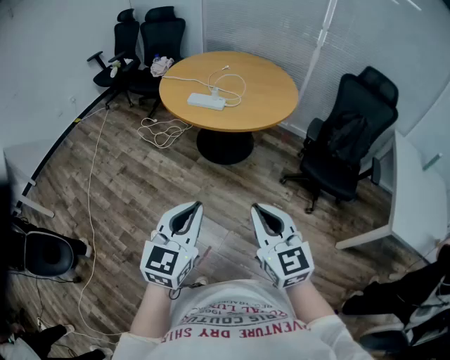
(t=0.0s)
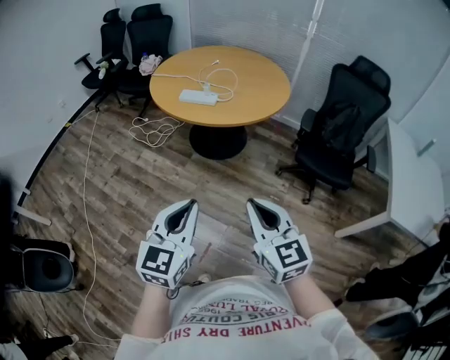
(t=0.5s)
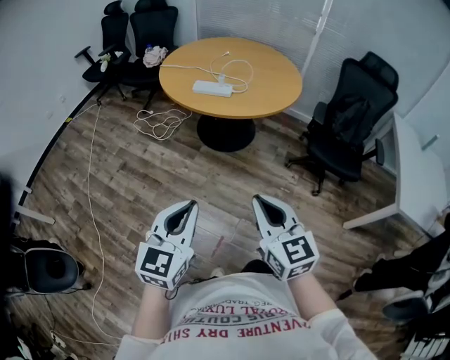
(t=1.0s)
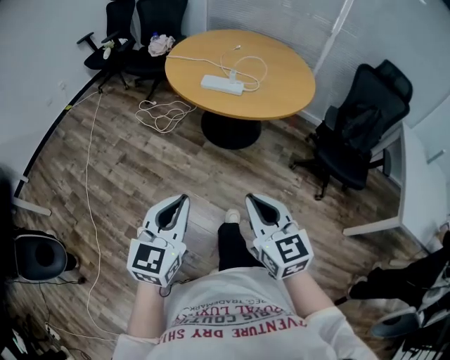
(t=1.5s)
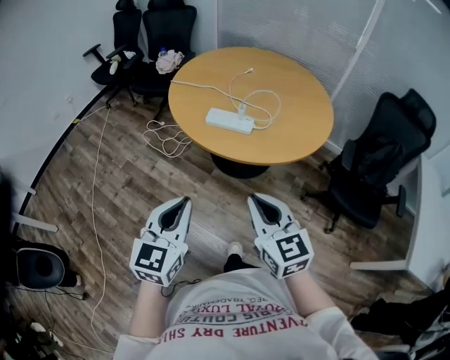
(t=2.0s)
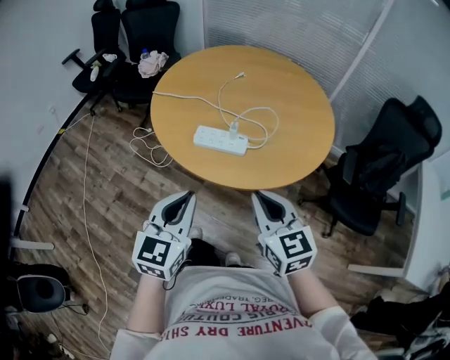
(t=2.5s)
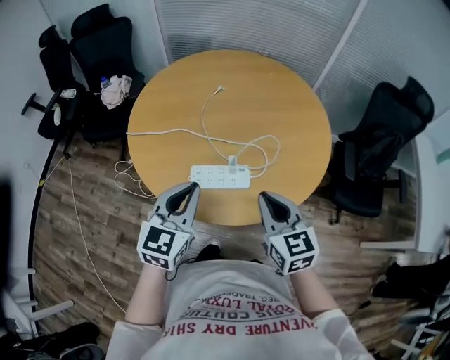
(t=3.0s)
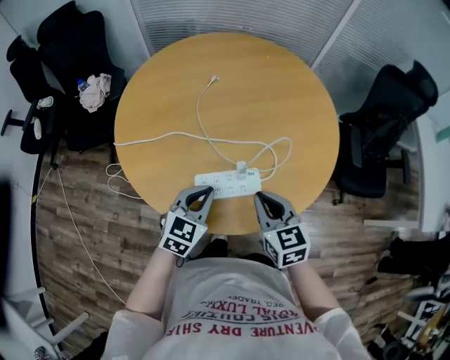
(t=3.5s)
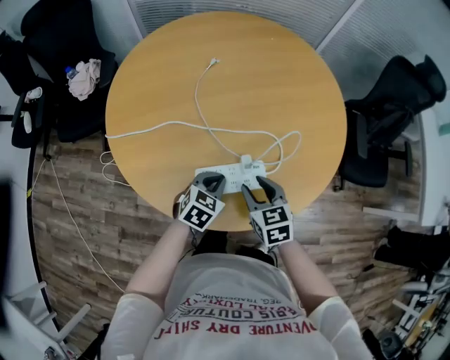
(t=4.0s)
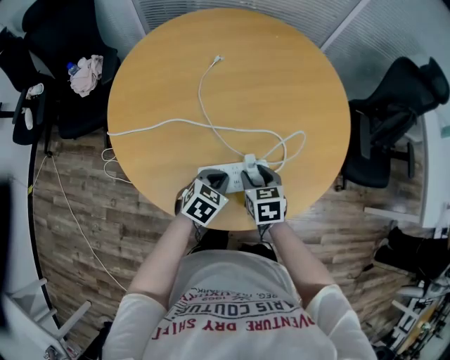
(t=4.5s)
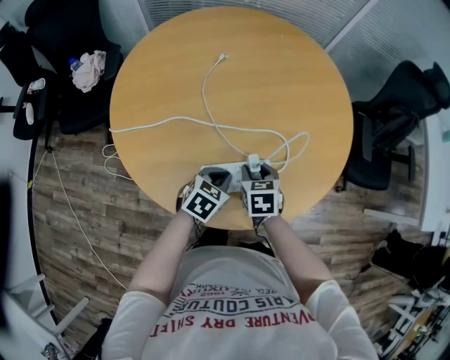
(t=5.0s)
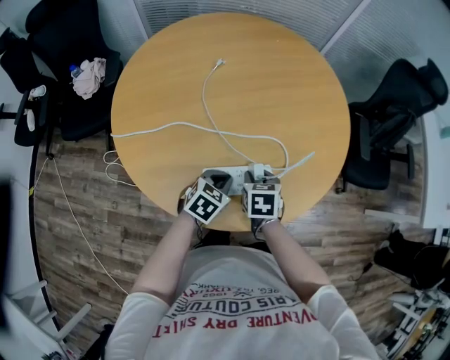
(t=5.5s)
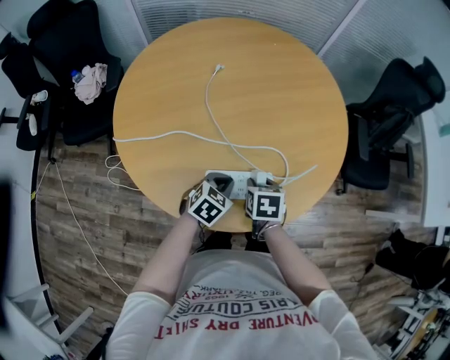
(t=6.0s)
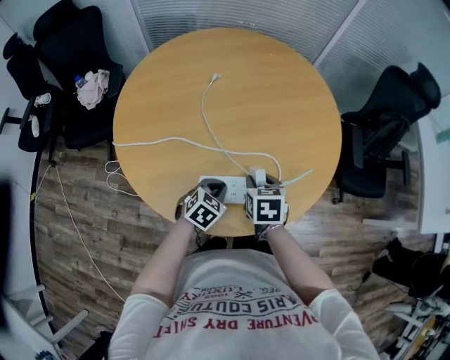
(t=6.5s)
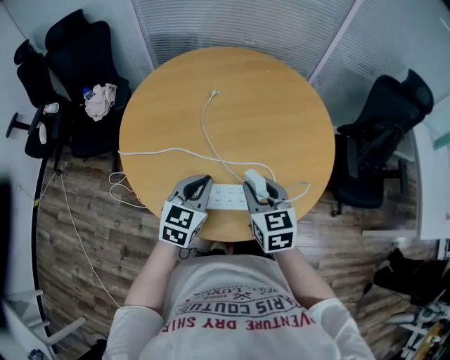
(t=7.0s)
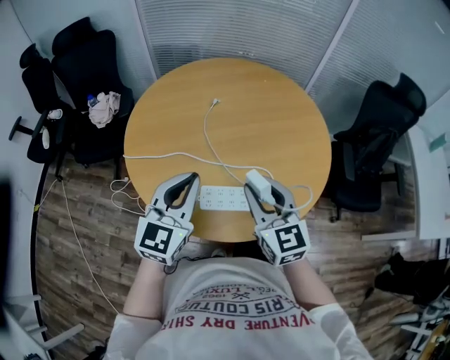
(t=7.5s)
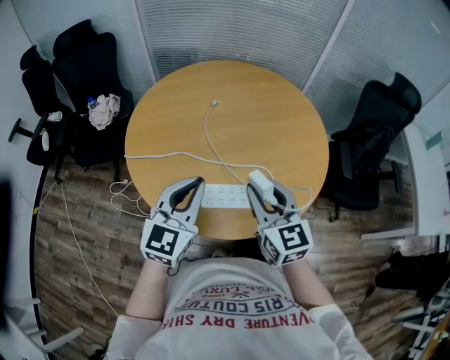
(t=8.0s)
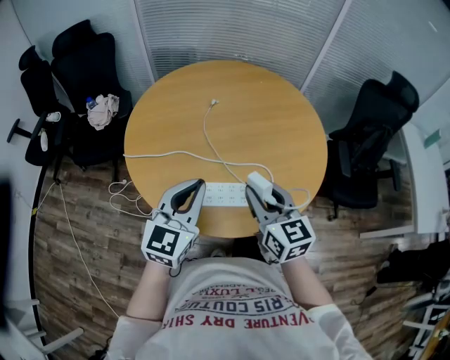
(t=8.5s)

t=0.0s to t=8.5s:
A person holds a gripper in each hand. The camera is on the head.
t=0.0s to t=2.0s: The grippers both shift forward and to the left by roughly 30 cm.
t=2.0s to t=4.0s: Both grippers are carried some 40 cm. The right gripper changes its angle by some 40 degrees, and opens; the left gripper tilts its fingers roughly 30 degrees downward.
t=6.5s to t=8.5s: The right gripper heads upward, covering about 20 cm, and angles its fingers upward, by roughly 40 degrees; the left gripper is displaced upward by some 30 cm, and tips its fingers upward by approximately 40 degrees.

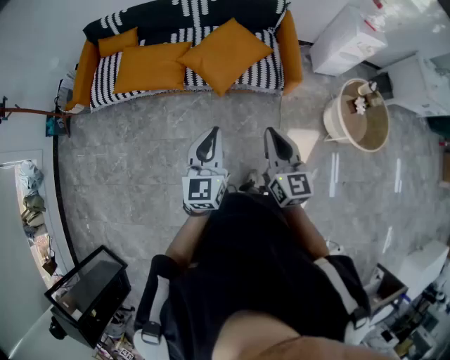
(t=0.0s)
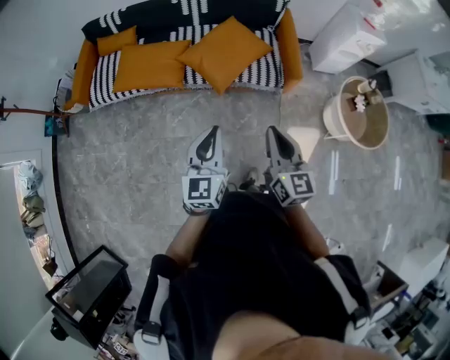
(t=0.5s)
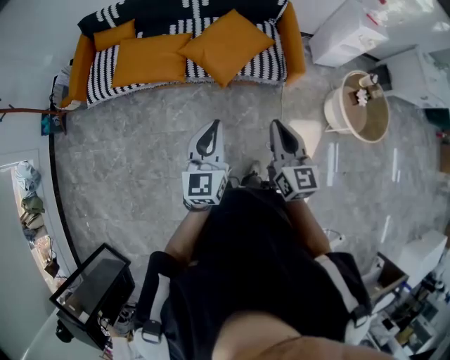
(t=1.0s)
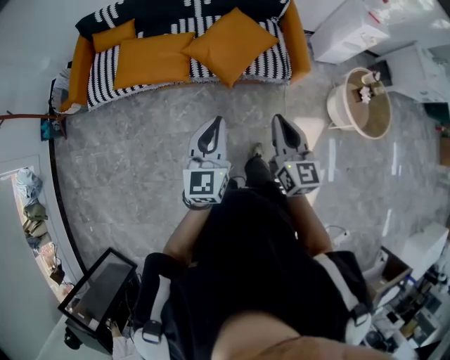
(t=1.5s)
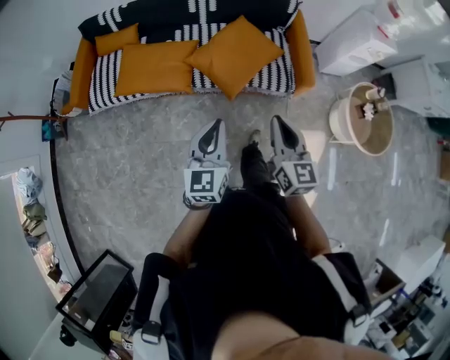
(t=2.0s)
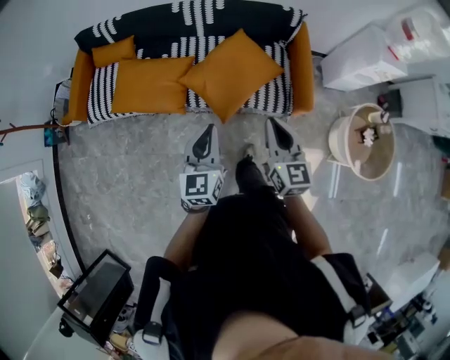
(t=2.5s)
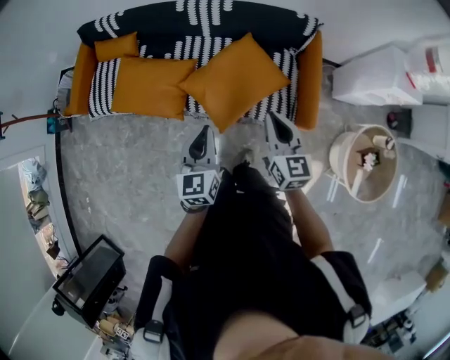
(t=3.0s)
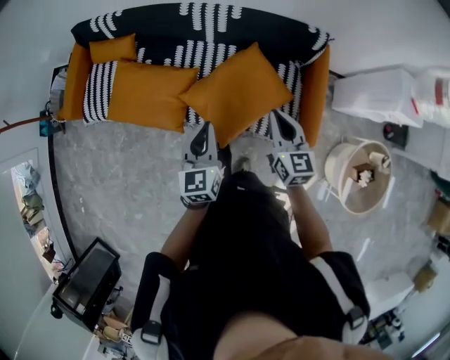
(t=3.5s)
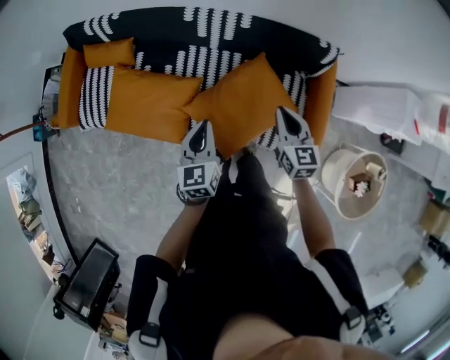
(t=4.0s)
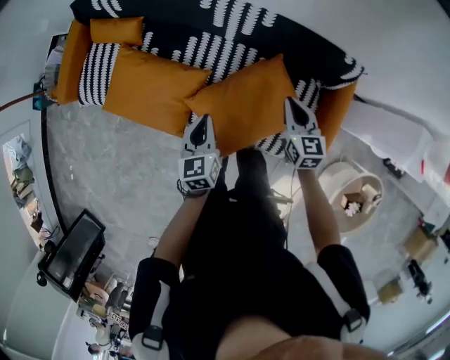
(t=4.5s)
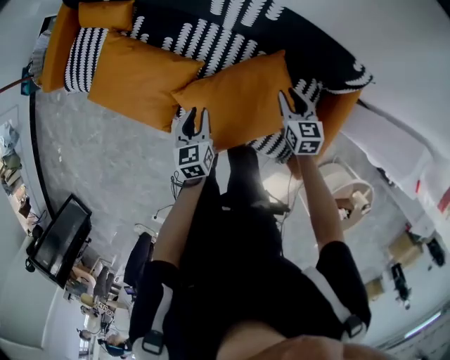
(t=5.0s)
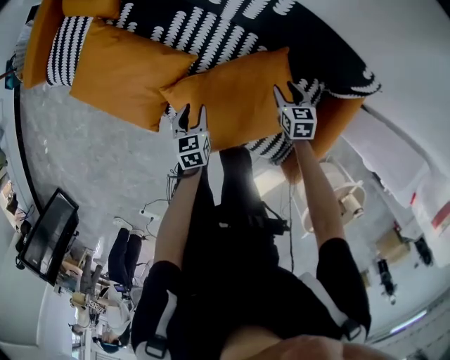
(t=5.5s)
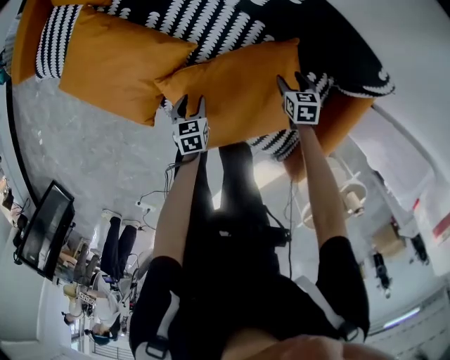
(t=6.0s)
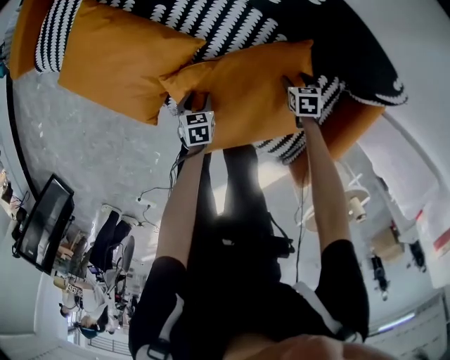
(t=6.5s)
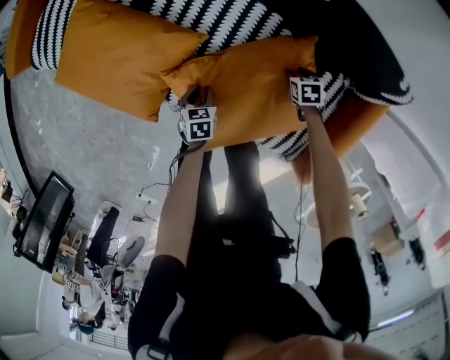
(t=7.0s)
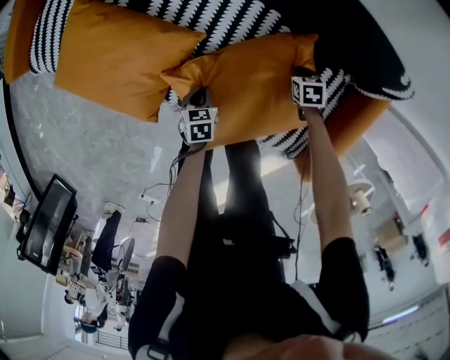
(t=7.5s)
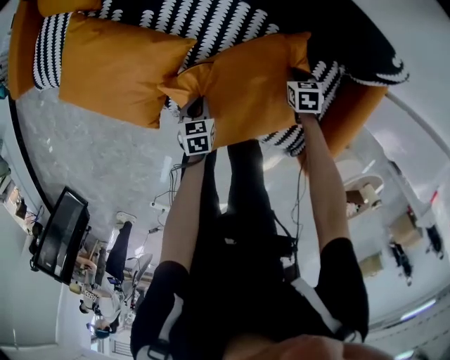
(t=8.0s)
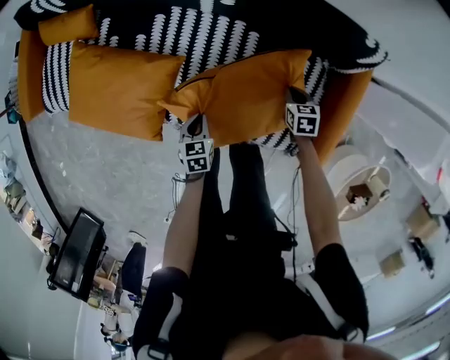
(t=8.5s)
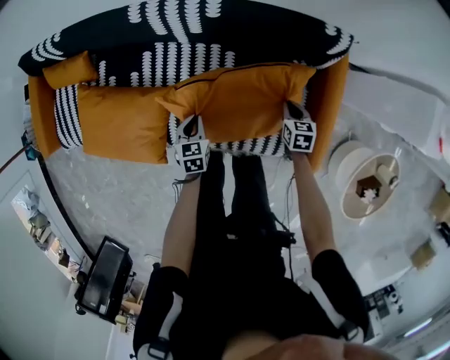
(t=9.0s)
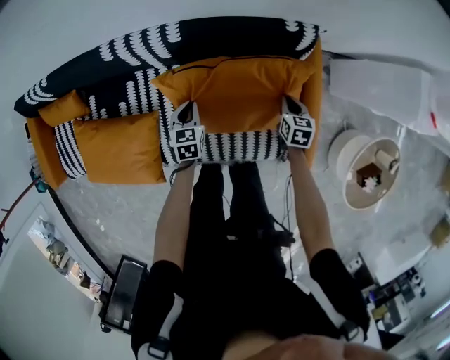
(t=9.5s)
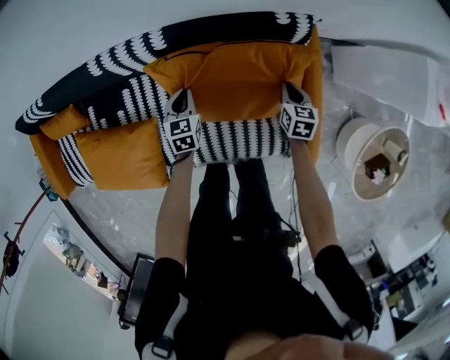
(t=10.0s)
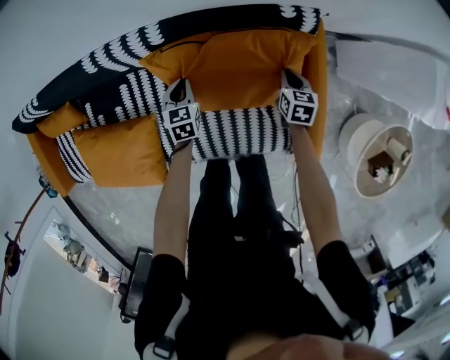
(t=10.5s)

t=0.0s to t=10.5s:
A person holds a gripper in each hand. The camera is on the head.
t=0.0s to t=2.0s: The two grippers go about 15 cm forward and to the left.
t=2.0s to t=4.0s: Both grippers are carried forward, some 50 cm. The left gripper turns by about 20 degrees. The right gripper swivels some 20 degrees.
t=4.0s to t=6.5s: Both grippers travel together downward, about 40 cm. The right gripper tips its fingers downward by about 50 degrees, and opens up, while the left gripper tilts its fingers roughly 40 degrees downward, and opens its fingers.
t=6.5s to t=8.5s: The left gripper heads upward, covering roughly 10 cm, and closes, while the right gripper ends up some 10 cm from where it was, and closes.
t=8.5s to t=10.5s: The right gripper is displaced to the right, forward and upward by roughly 15 cm, and swivels roughly 30 degrees. Meanwhile the left gripper goes about 30 cm forward, and turns by about 20 degrees.

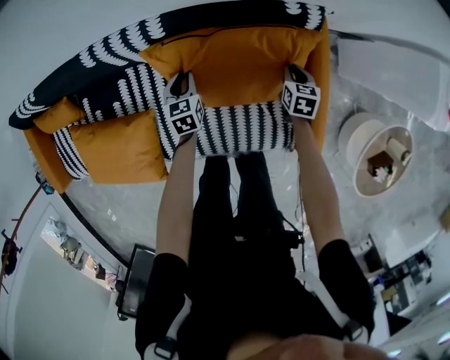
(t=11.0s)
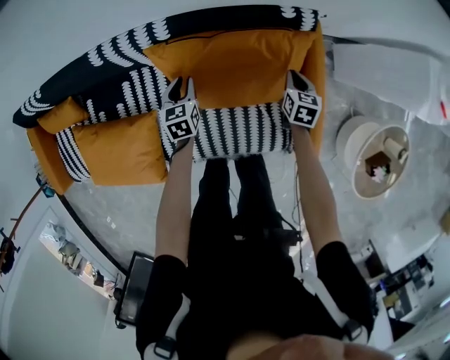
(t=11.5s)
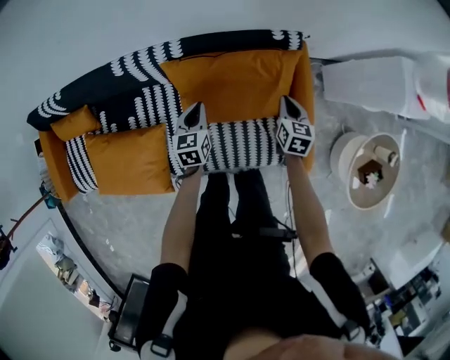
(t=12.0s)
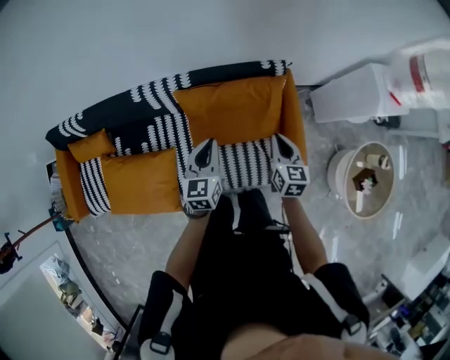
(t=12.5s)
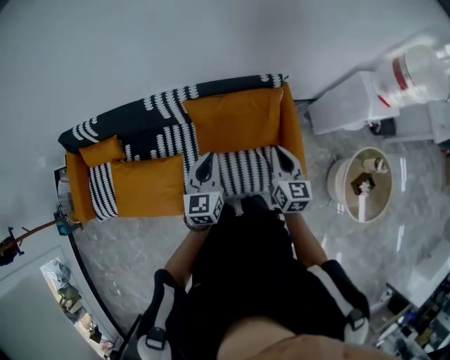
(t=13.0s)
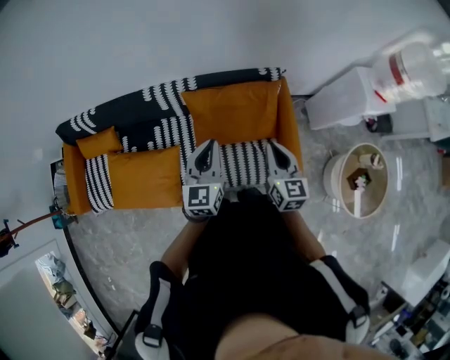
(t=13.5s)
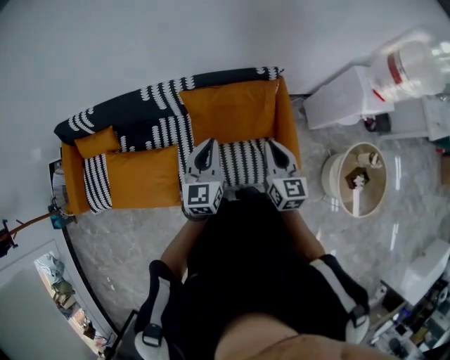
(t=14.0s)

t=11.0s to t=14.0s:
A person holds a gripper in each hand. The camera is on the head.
t=11.0s to t=12.5s: Both grippers move upward and backward, approximately 35 cm. The left gripper swivels approximately 30 degrees, while the right gripper changes its angle by roughly 30 degrees.
t=12.5s to t=14.0s: The grippers both shift upward and backward by approximately 15 cm.

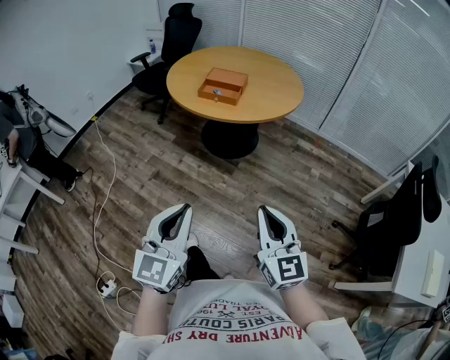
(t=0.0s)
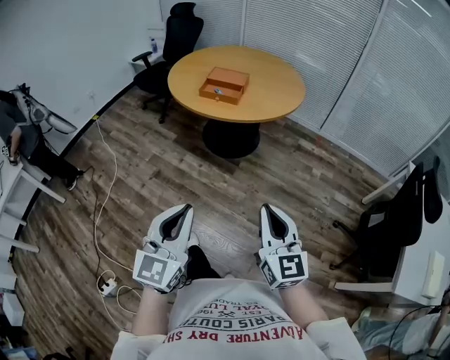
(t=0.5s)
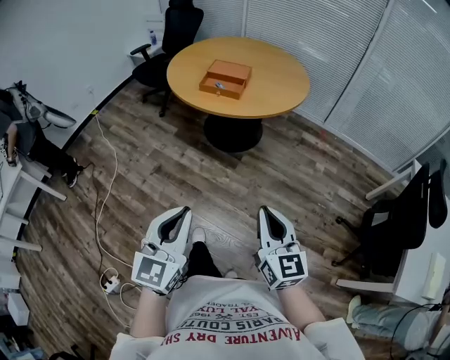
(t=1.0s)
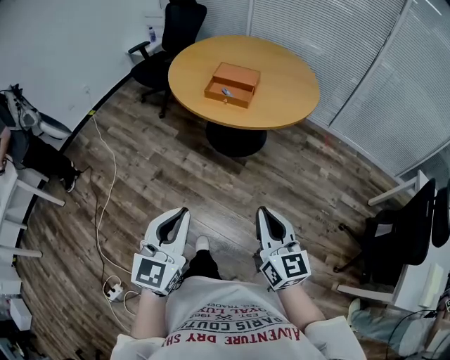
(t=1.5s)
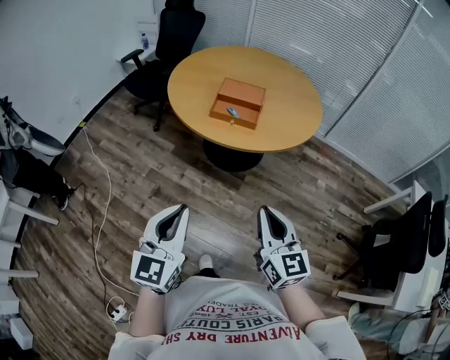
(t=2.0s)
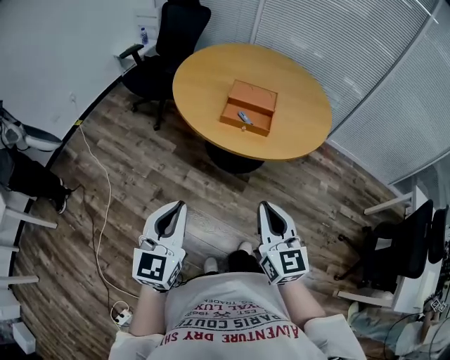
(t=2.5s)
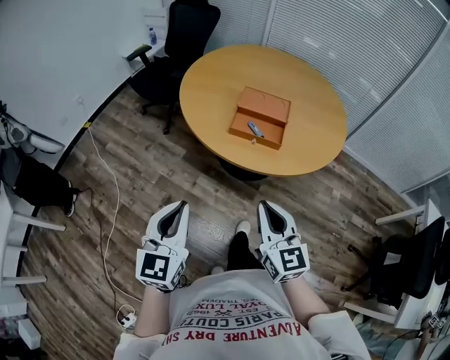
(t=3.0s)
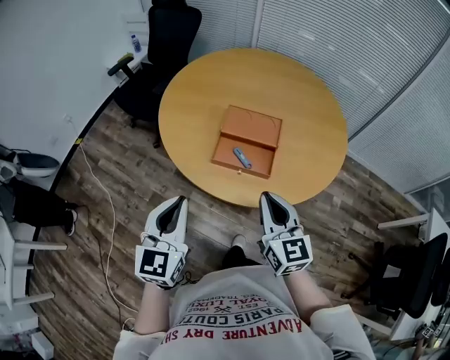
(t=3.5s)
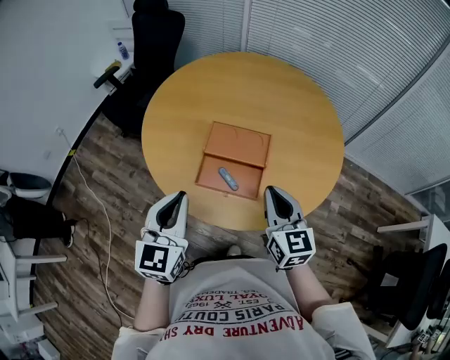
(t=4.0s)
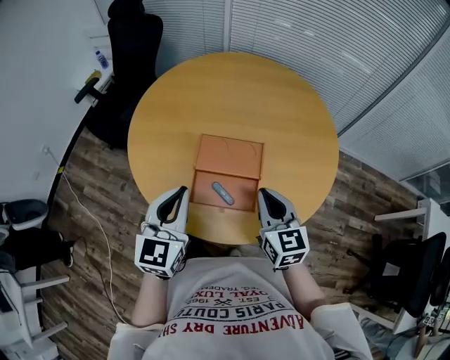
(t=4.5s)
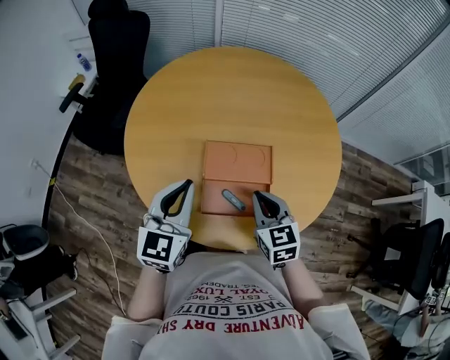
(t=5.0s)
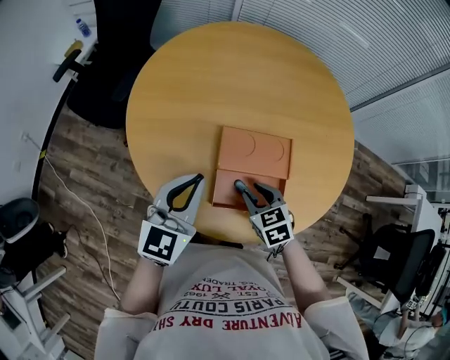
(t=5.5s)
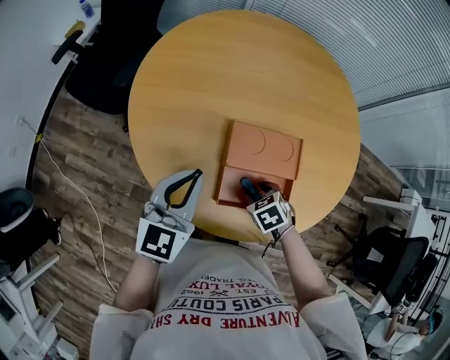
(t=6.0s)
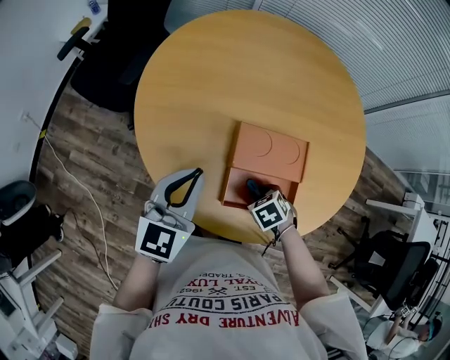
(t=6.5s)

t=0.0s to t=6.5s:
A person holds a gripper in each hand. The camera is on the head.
t=0.0s to t=2.0s: The grippers both shift forward and to the left by some 25 cm.
t=2.0s to t=4.5s: The two grippers travel together, forward, about 50 cm.
t=4.5s to t=6.5s: The left gripper ends up approximately 15 cm from where it was. The right gripper is displaced downward by roughly 25 cm, tips its fingers downward by some 60 degrees, and opens its fingers.
